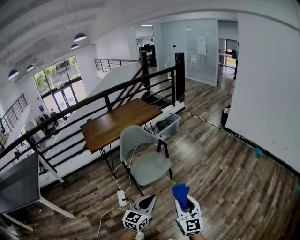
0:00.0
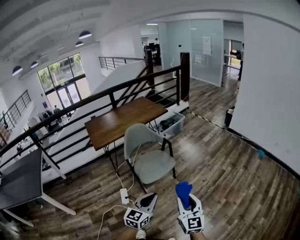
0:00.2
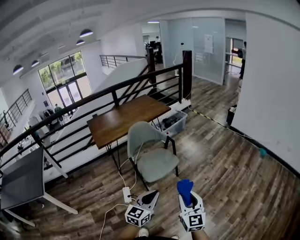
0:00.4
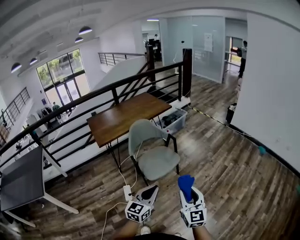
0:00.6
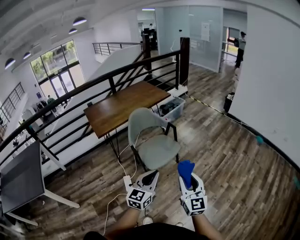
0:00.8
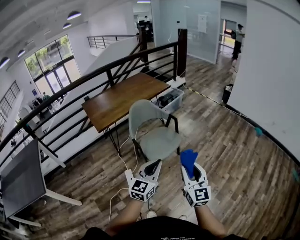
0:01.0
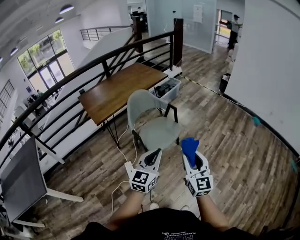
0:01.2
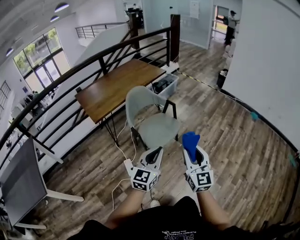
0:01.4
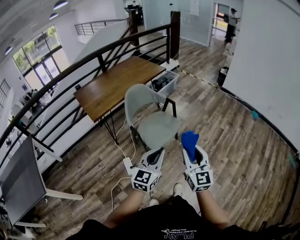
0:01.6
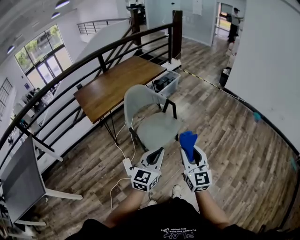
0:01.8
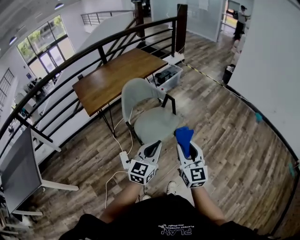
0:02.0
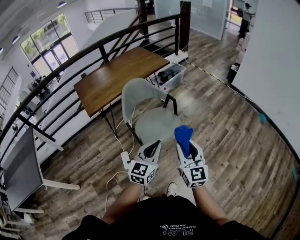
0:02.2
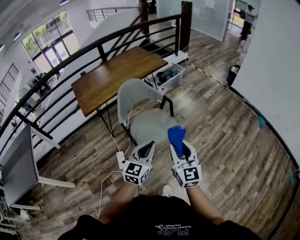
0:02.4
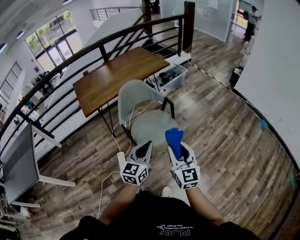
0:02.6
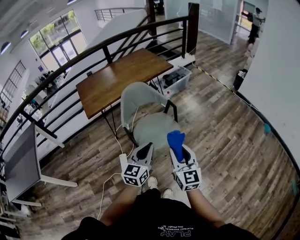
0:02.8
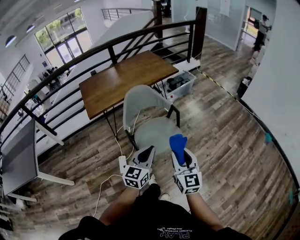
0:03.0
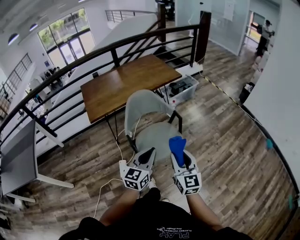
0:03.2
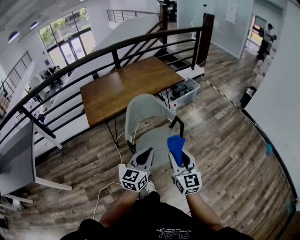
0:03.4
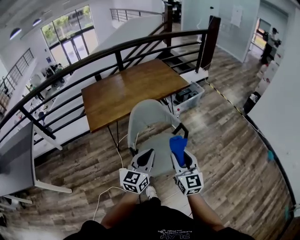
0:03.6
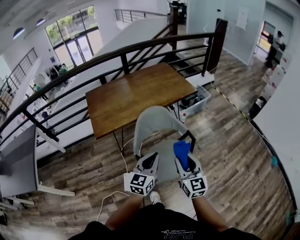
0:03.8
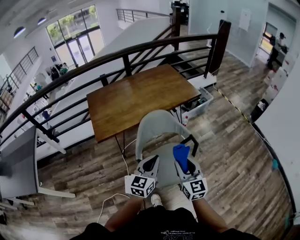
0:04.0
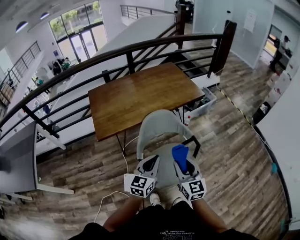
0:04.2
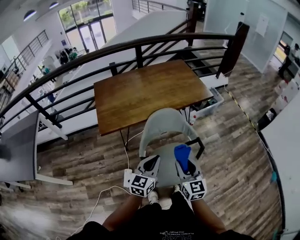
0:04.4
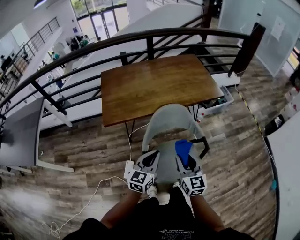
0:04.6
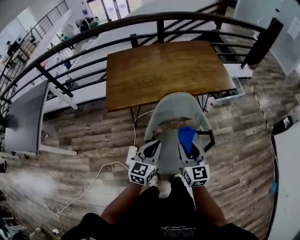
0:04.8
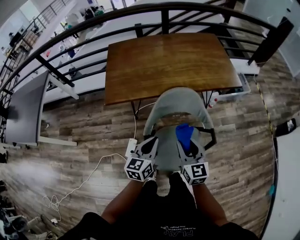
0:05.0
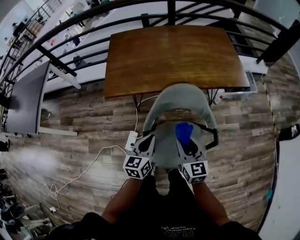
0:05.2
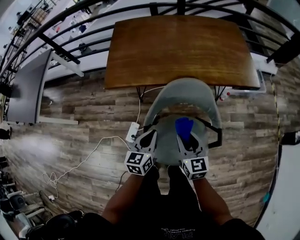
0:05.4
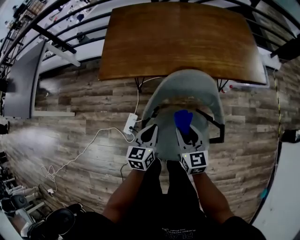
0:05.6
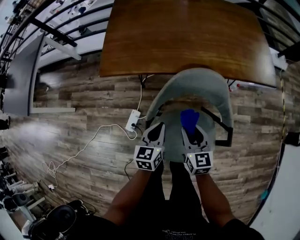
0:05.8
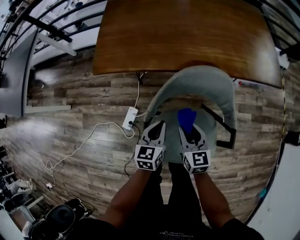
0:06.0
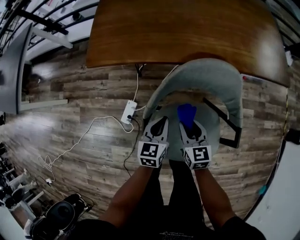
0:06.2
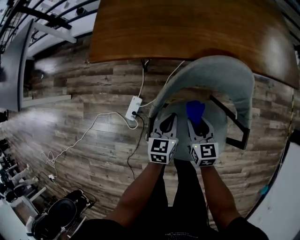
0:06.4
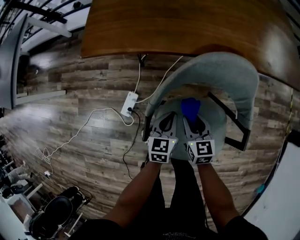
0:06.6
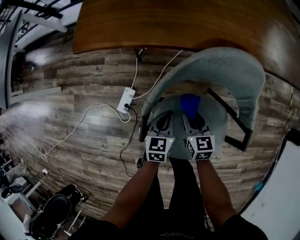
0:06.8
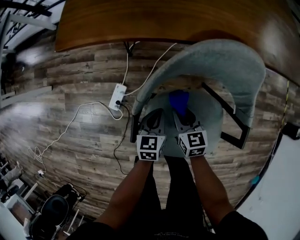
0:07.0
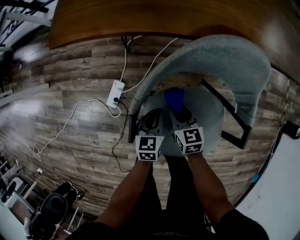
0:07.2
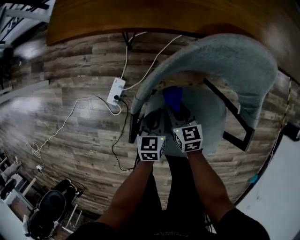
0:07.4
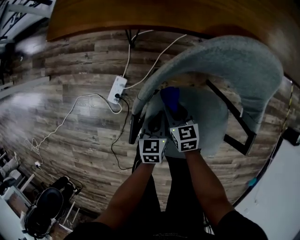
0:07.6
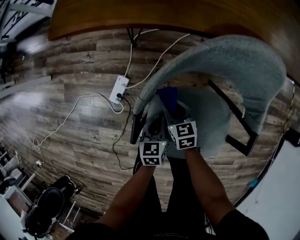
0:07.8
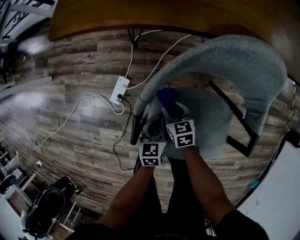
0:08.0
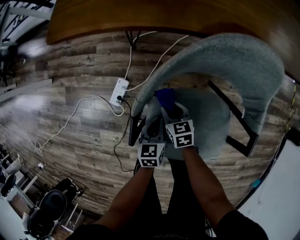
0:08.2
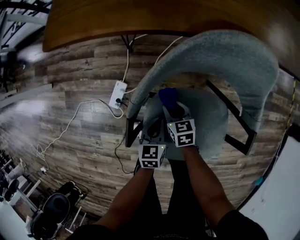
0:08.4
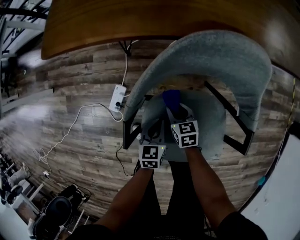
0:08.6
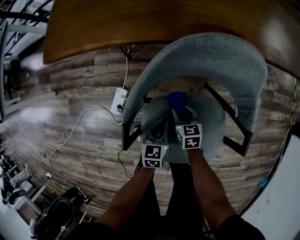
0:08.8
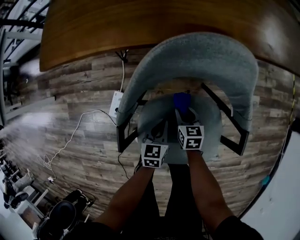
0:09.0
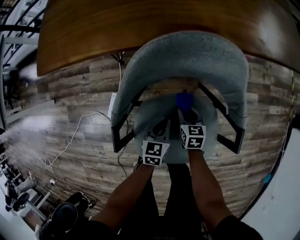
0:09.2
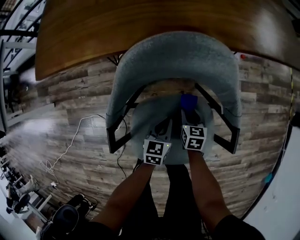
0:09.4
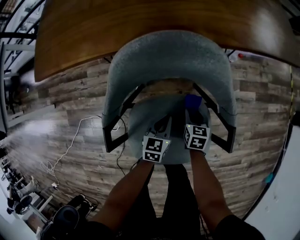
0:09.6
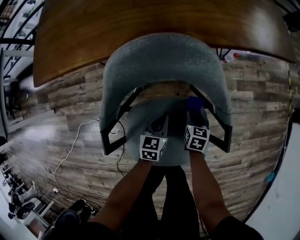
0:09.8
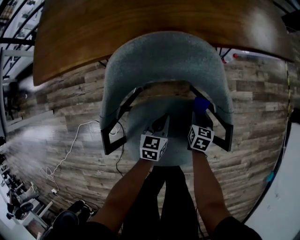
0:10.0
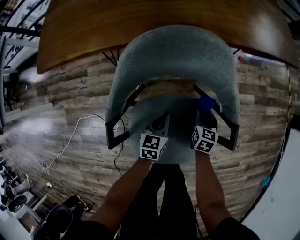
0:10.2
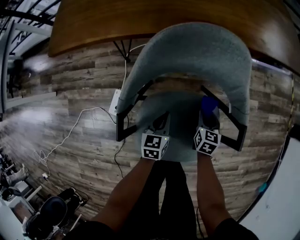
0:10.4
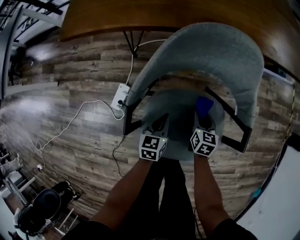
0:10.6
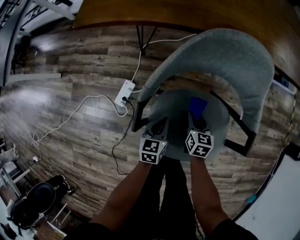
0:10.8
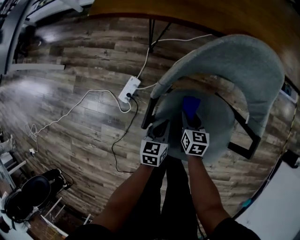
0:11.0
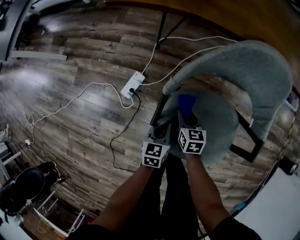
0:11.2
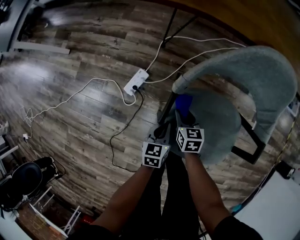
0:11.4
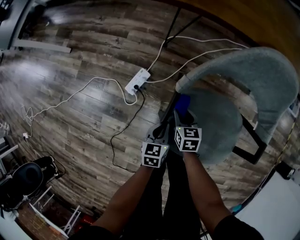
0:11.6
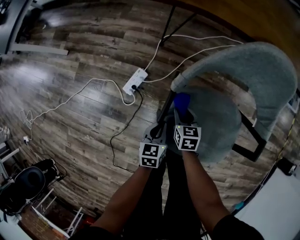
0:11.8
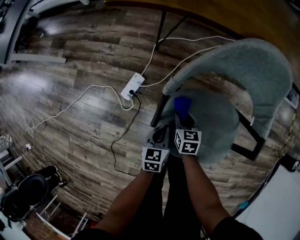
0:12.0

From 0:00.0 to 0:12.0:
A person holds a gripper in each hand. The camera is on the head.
From 0:00.0 to 0:01.6: The grippers both shift to the left by some 15 cm.
From 0:01.6 to 0:03.0: Both grippers travel together forward, about 15 cm.
From 0:03.0 to 0:04.4: The grippers both shift forward and to the left by some 30 cm.
From 0:04.4 to 0:06.0: The two grippers go some 25 cm downward. The right gripper turns by some 30 degrees, while the left gripper swivels some 40 degrees.
From 0:06.0 to 0:07.6: The two grippers go some 25 cm downward. The right gripper rotates approximately 20 degrees.
From 0:07.6 to 0:09.0: The left gripper is displaced to the right by roughly 5 cm, while the right gripper goes roughly 10 cm to the right.
From 0:09.0 to 0:10.4: The right gripper goes about 15 cm to the right; the left gripper reaches roughly 10 cm to the right, then returns.
From 0:10.4 to 0:12.0: The left gripper ends up approximately 15 cm from where it was. The right gripper changes place by roughly 25 cm, and swivels roughly 30 degrees.

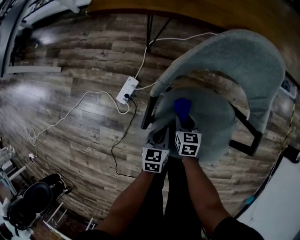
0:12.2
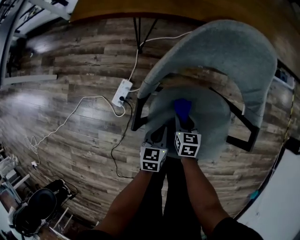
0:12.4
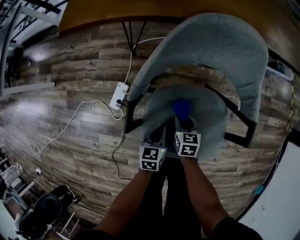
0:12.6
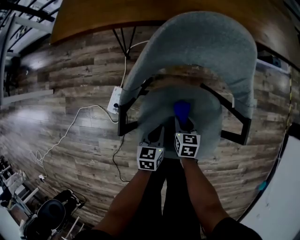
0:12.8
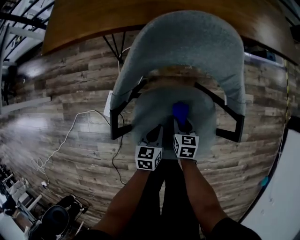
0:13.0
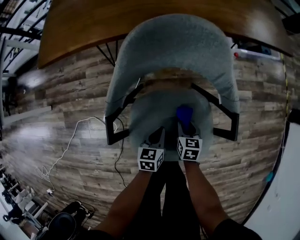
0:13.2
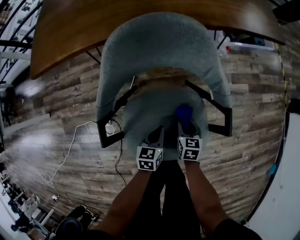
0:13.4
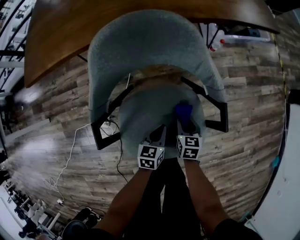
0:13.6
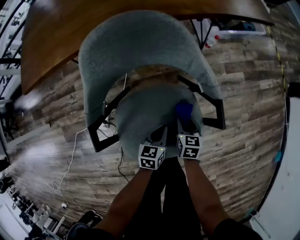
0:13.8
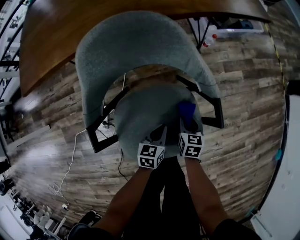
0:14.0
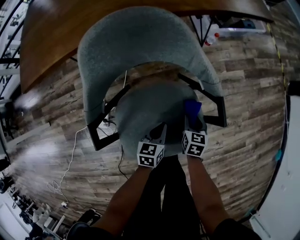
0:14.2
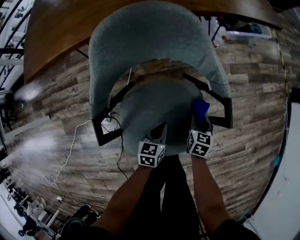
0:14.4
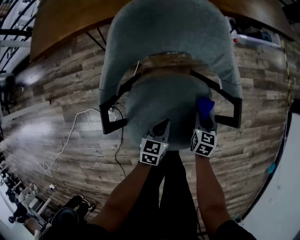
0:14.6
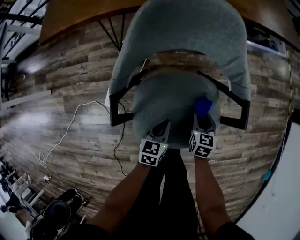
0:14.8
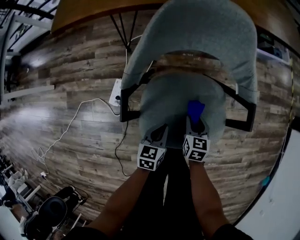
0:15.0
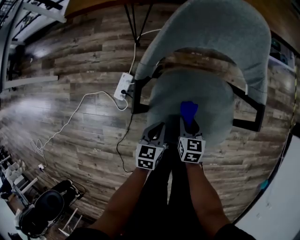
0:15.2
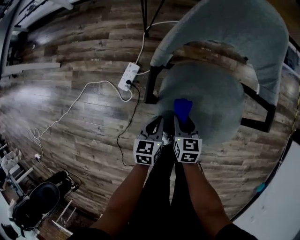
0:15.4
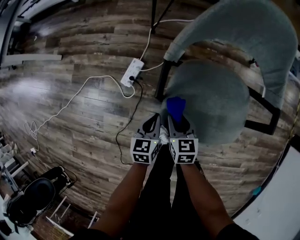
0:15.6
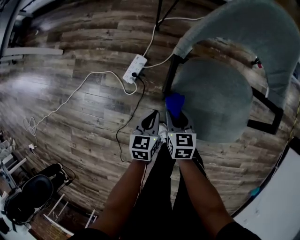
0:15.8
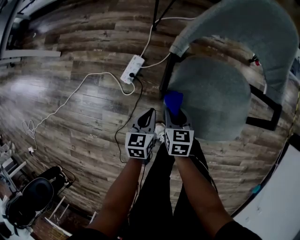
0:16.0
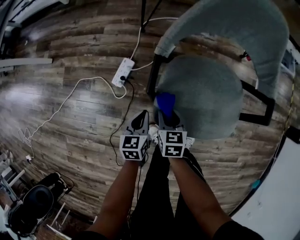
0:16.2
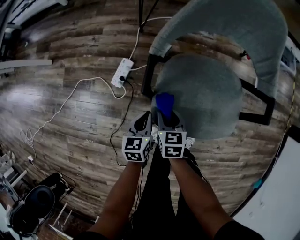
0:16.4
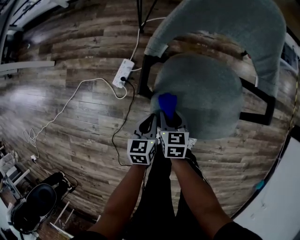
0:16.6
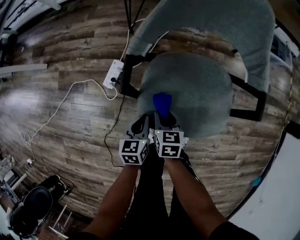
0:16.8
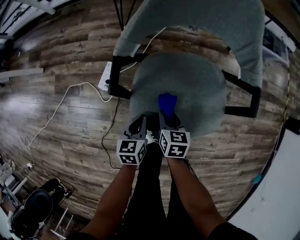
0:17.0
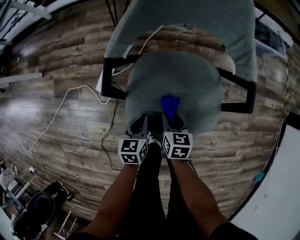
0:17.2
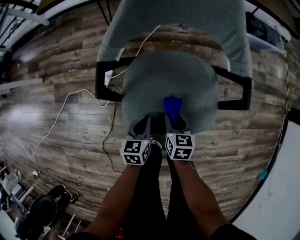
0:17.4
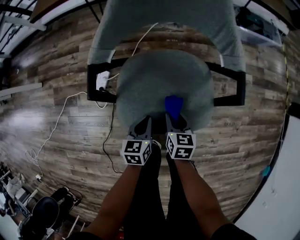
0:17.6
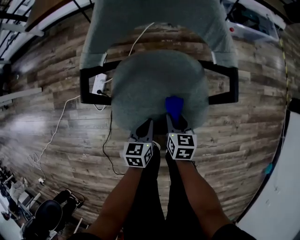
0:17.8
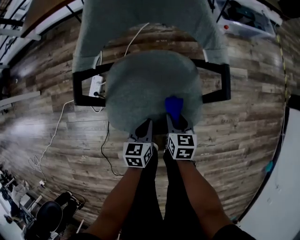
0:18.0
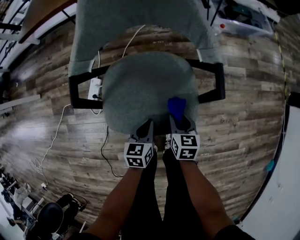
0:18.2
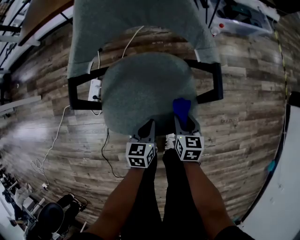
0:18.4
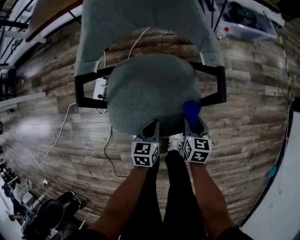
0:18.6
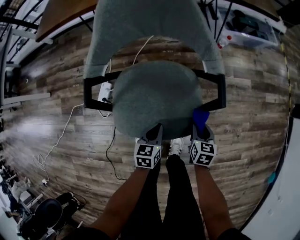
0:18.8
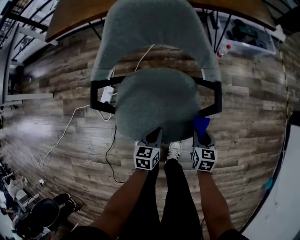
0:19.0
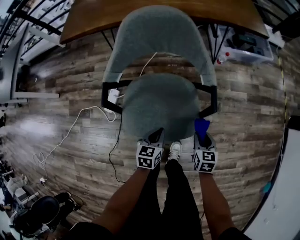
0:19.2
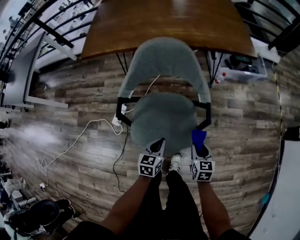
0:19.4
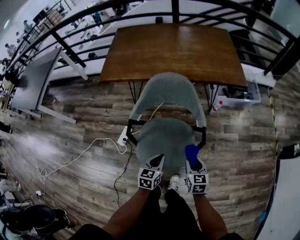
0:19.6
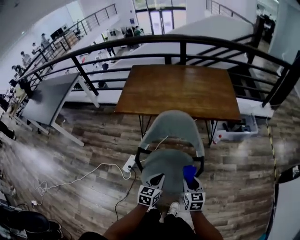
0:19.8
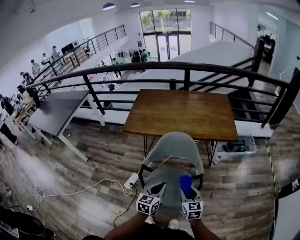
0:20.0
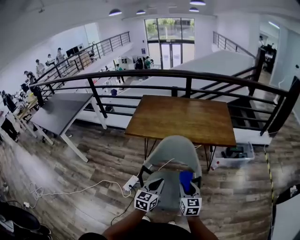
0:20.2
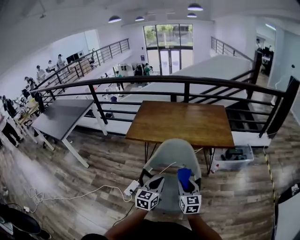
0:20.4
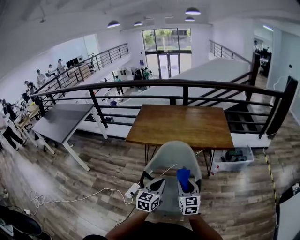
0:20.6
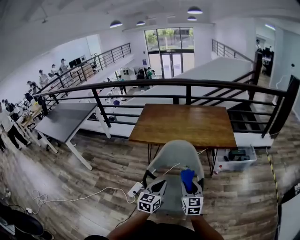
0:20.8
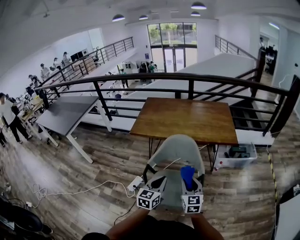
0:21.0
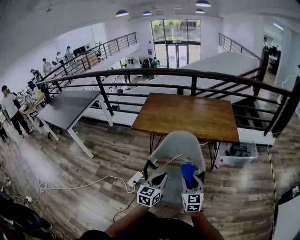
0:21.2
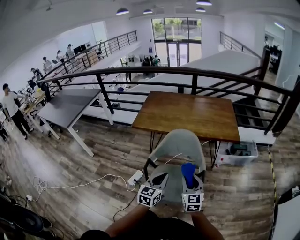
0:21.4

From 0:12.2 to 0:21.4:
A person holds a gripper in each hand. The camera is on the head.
From 0:12.2 to 0:13.8: The left gripper changes place by approximately 20 cm, and rotates about 30 degrees, while the right gripper shifts by approximately 25 cm, and rotates about 30 degrees.
From 0:13.8 to 0:15.2: The left gripper shifts by approximately 20 cm, while the right gripper changes place by roughly 20 cm.
From 0:15.2 to 0:16.8: The right gripper goes approximately 10 cm to the left.
From 0:16.8 to 0:18.4: Both grippers travel together to the right, about 25 cm.
From 0:18.4 to 0:19.8: The two grippers go approximately 35 cm upward. The right gripper rotates some 20 degrees.
From 0:19.8 to 0:21.4: The two grippers go approximately 15 cm upward. The right gripper swivels about 30 degrees.

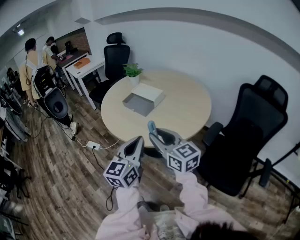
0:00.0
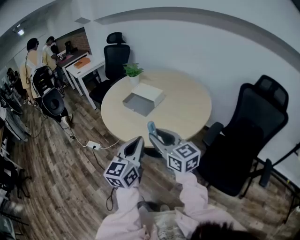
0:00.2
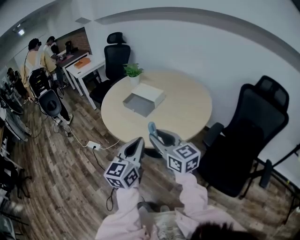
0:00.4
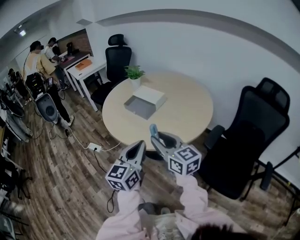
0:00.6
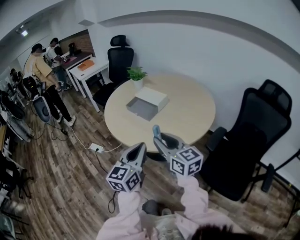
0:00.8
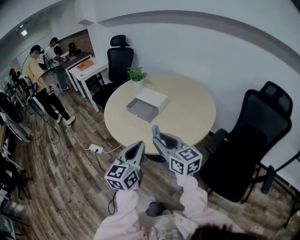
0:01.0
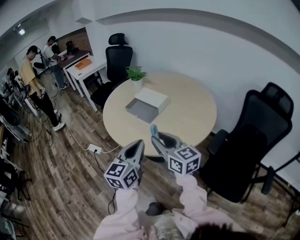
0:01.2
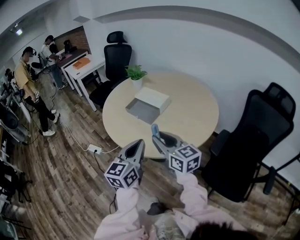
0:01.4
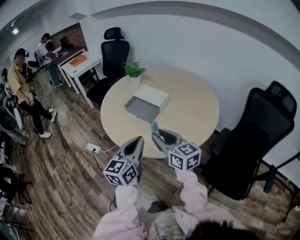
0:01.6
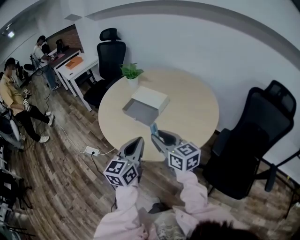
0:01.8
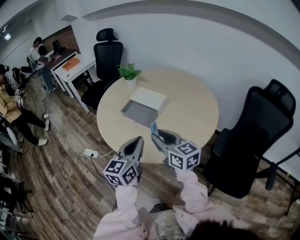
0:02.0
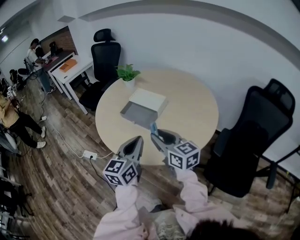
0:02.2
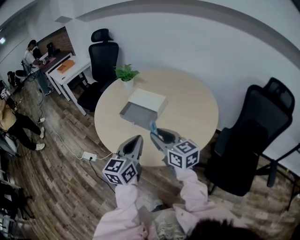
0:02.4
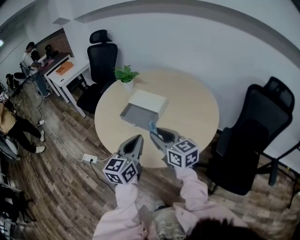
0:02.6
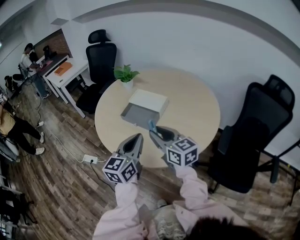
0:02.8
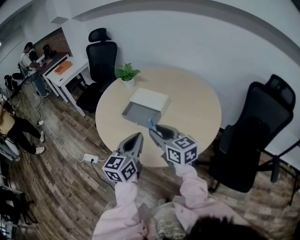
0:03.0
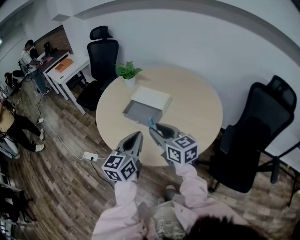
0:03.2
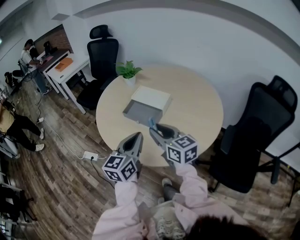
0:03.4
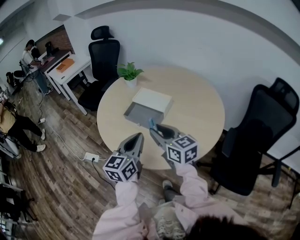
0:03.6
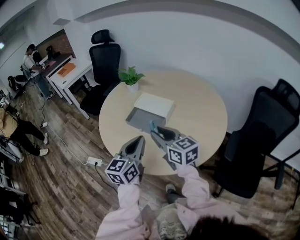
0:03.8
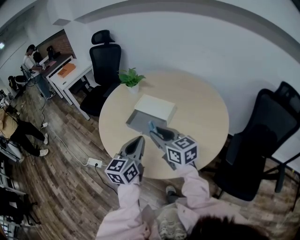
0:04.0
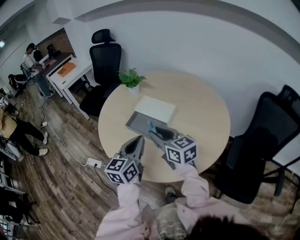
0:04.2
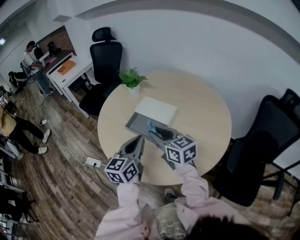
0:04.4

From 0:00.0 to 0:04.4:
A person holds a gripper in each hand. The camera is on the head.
From 0:00.0 to 0:01.4: The two grippers go some 10 cm forward.
From 0:01.4 to 0:03.0: The right gripper heads forward and to the left, covering about 15 cm. Meanwhile the left gripper moves forward, some 15 cm.
From 0:03.0 to 0:04.4: Both grippers move forward, approximately 10 cm.
